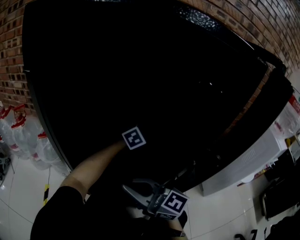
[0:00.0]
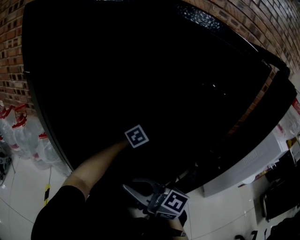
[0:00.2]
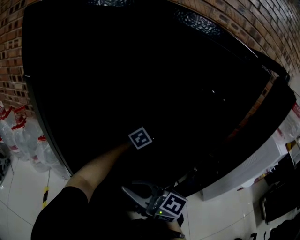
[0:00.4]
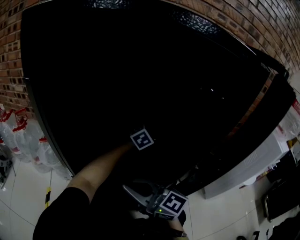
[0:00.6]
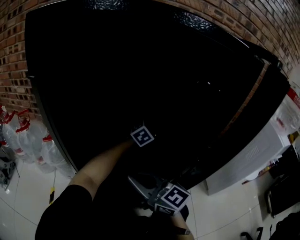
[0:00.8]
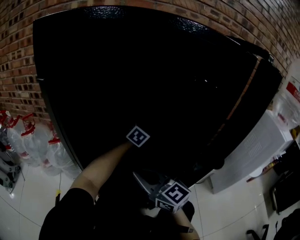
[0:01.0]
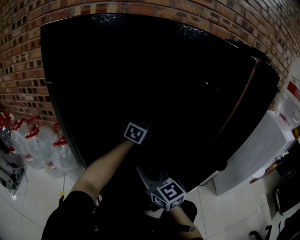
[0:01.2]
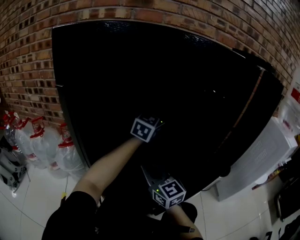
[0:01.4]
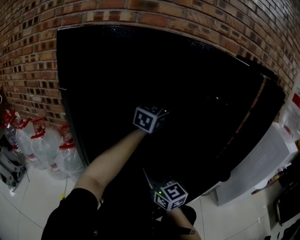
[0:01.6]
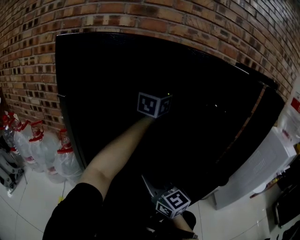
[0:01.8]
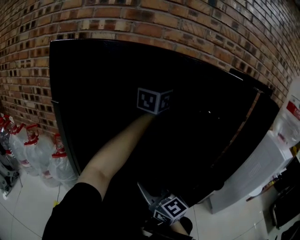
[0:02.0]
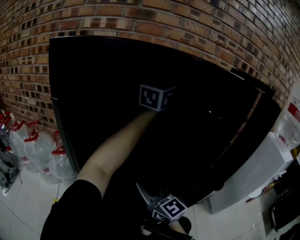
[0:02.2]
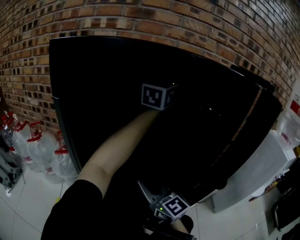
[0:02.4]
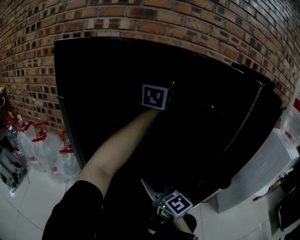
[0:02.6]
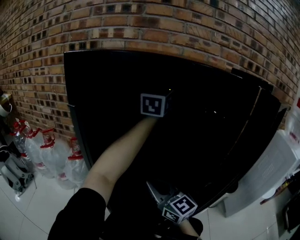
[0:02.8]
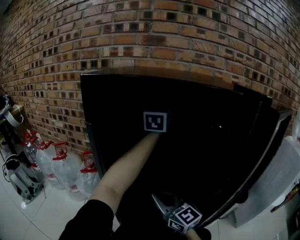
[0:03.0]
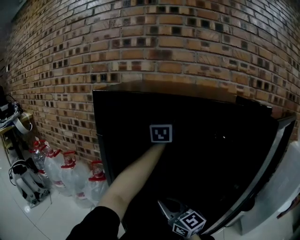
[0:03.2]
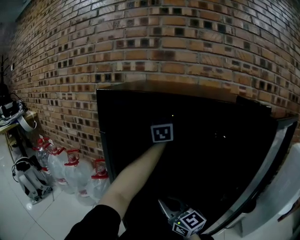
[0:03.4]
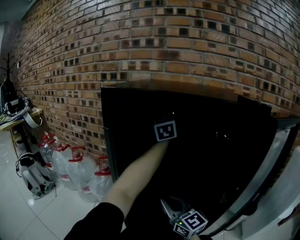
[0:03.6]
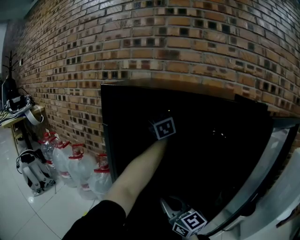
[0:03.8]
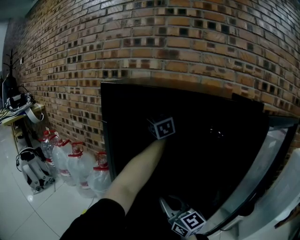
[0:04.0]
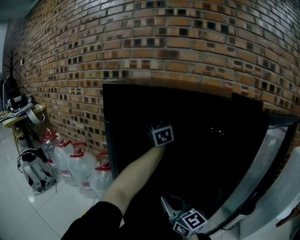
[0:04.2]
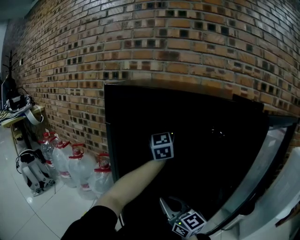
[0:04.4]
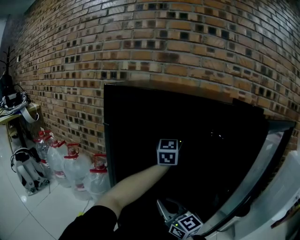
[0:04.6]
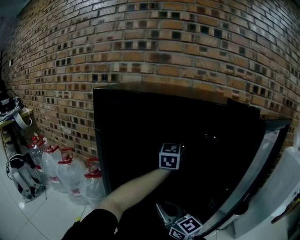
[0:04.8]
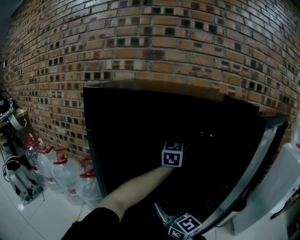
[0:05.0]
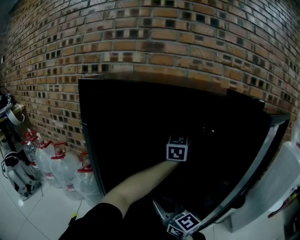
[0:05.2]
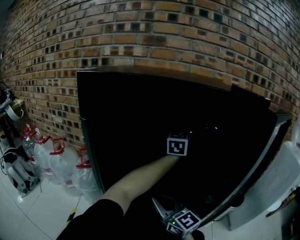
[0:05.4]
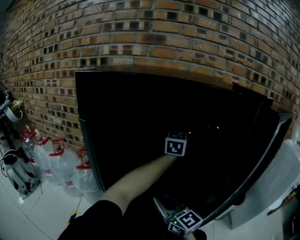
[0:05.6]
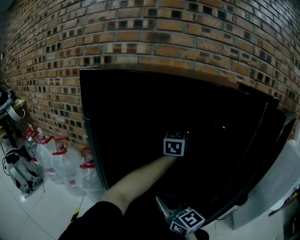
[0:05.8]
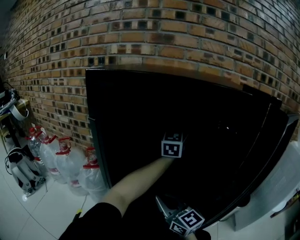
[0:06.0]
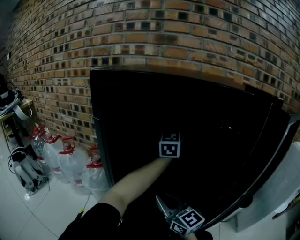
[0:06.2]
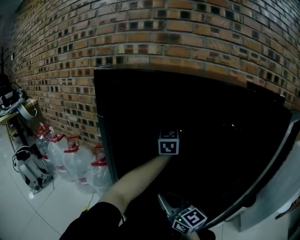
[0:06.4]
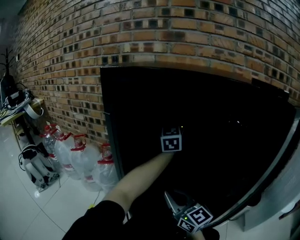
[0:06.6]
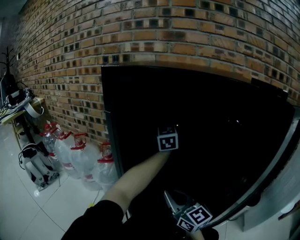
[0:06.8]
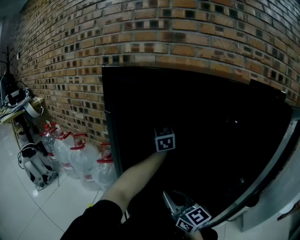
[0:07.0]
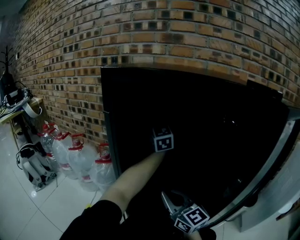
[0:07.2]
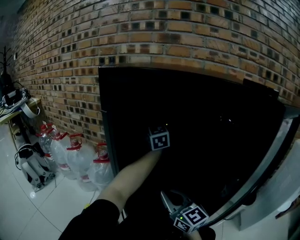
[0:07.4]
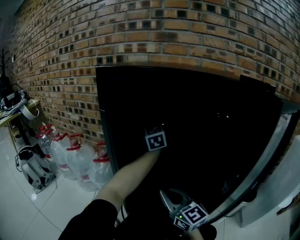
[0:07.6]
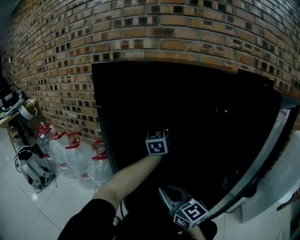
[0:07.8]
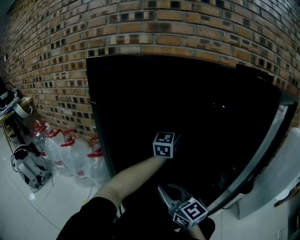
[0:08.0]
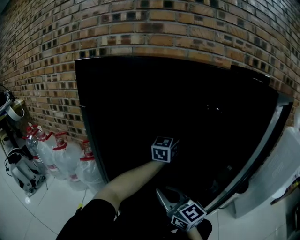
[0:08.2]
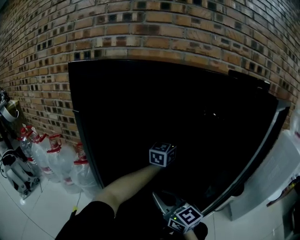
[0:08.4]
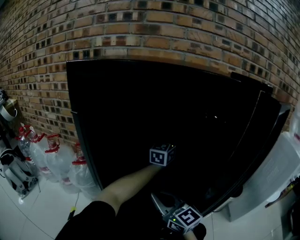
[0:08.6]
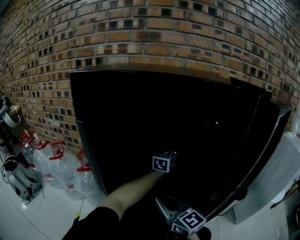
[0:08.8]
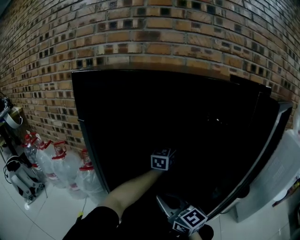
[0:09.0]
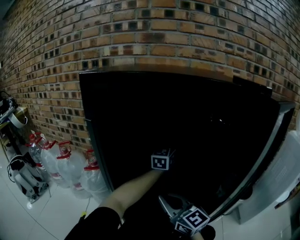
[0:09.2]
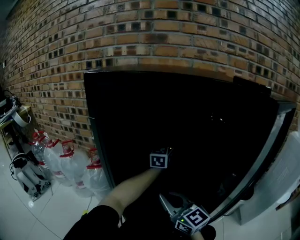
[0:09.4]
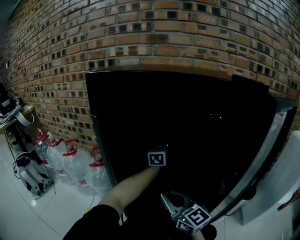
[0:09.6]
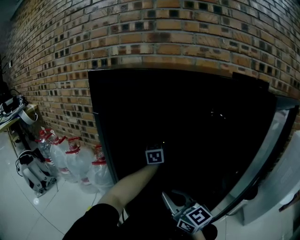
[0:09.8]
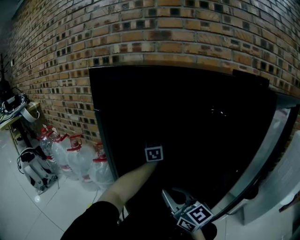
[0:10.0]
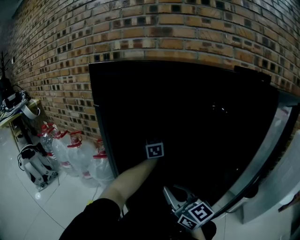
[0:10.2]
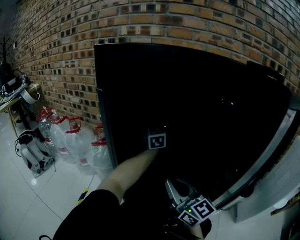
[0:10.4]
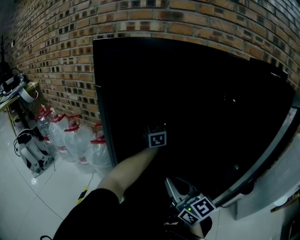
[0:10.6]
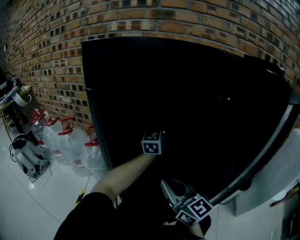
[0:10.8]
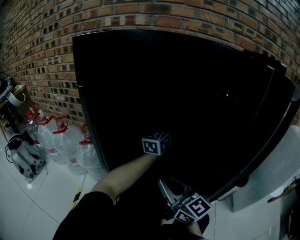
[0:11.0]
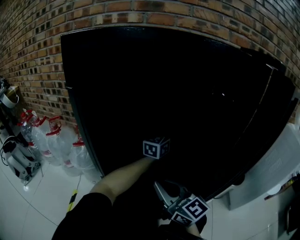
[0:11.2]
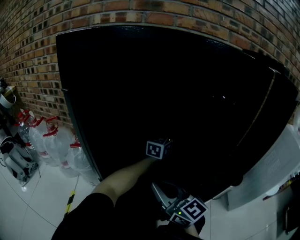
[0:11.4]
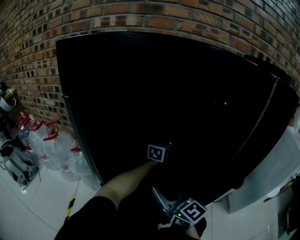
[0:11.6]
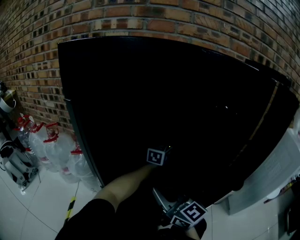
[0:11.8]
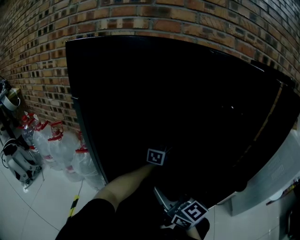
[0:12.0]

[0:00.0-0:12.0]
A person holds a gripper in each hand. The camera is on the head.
0:00.0 to 0:01.6: The left gripper heads upward, covering about 25 cm, and tips its fingers upward by roughly 40 degrees, while the right gripper is displaced forward by roughly 10 cm, and rotates about 30 degrees.
0:01.6 to 0:03.0: The left gripper moves upward and to the left, approximately 15 cm, and swivels approximately 30 degrees. The right gripper moves approximately 5 cm.
0:03.0 to 0:04.4: The left gripper moves to the left, about 10 cm, and swivels roughly 20 degrees.
0:04.4 to 0:06.0: The left gripper goes approximately 15 cm to the right and downward, and swivels roughly 20 degrees.
0:06.0 to 0:07.6: The left gripper shifts about 15 cm to the left and forward, and changes its angle by some 30 degrees.
0:07.6 to 0:09.0: The left gripper travels to the right and downward by approximately 20 cm, and swivels some 40 degrees.
0:09.0 to 0:10.4: The left gripper moves to the left and forward, roughly 15 cm, and changes its angle by about 30 degrees.
0:10.4 to 0:12.0: The left gripper shifts about 15 cm to the right and downward, and swivels approximately 40 degrees.

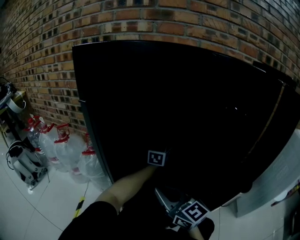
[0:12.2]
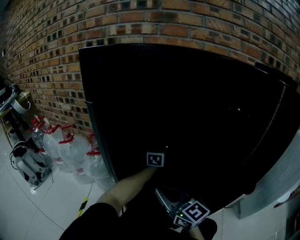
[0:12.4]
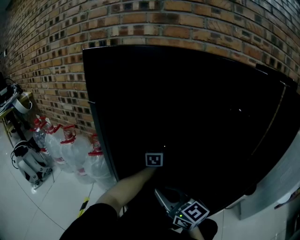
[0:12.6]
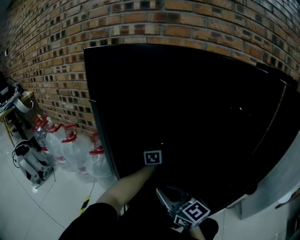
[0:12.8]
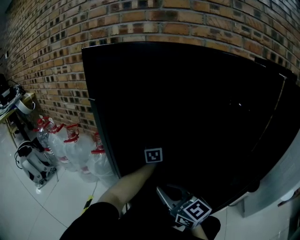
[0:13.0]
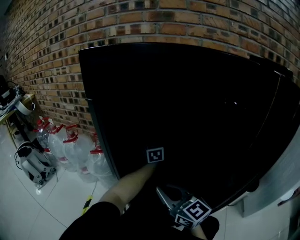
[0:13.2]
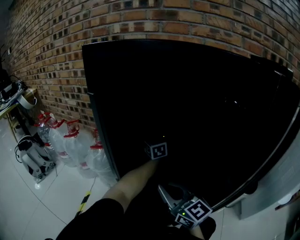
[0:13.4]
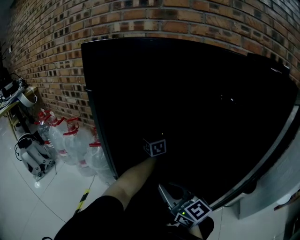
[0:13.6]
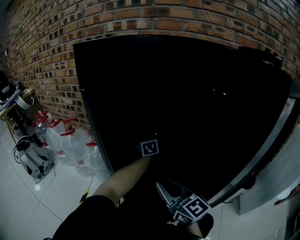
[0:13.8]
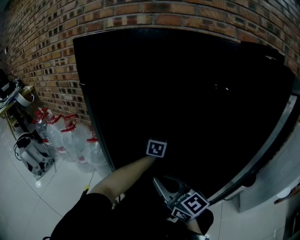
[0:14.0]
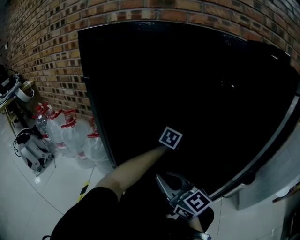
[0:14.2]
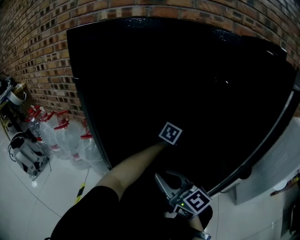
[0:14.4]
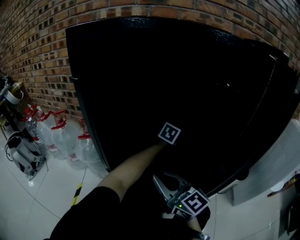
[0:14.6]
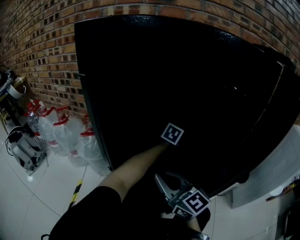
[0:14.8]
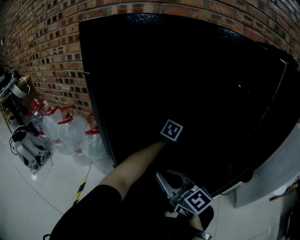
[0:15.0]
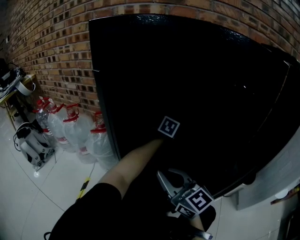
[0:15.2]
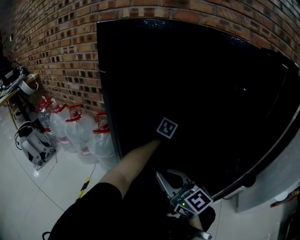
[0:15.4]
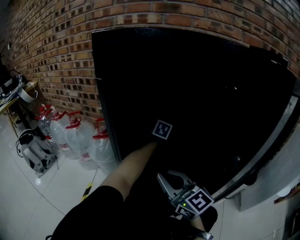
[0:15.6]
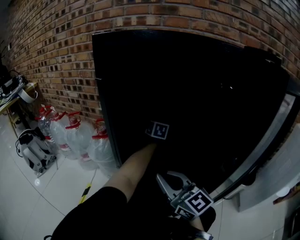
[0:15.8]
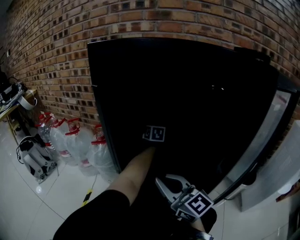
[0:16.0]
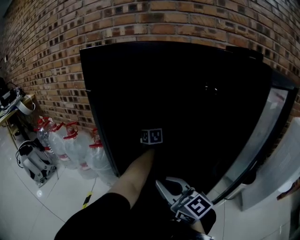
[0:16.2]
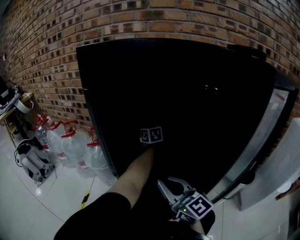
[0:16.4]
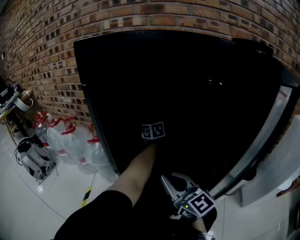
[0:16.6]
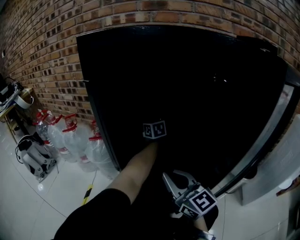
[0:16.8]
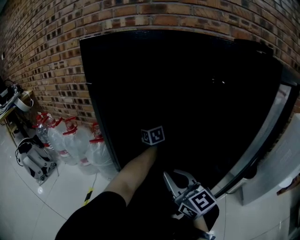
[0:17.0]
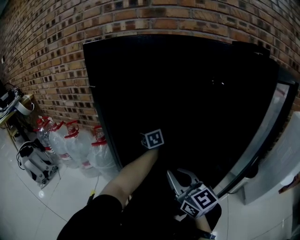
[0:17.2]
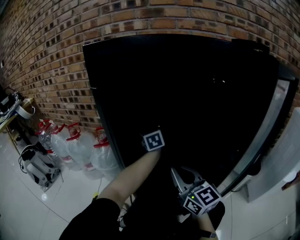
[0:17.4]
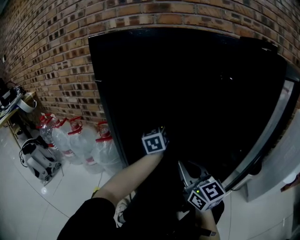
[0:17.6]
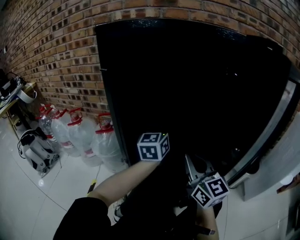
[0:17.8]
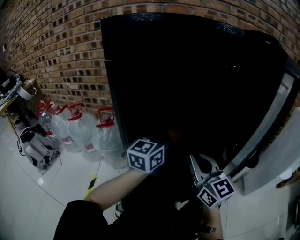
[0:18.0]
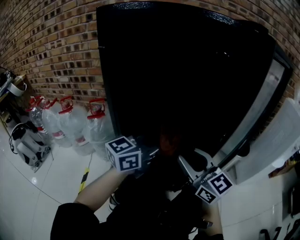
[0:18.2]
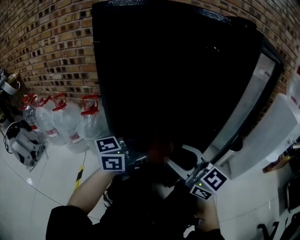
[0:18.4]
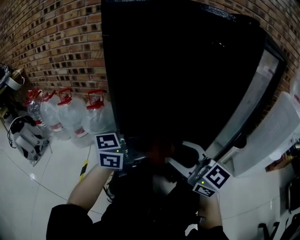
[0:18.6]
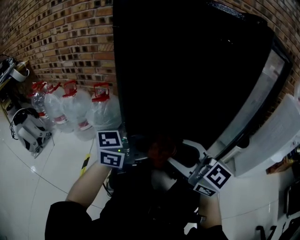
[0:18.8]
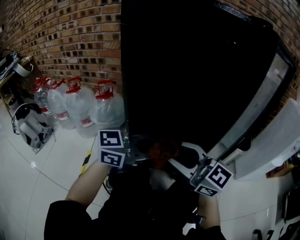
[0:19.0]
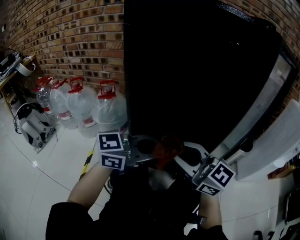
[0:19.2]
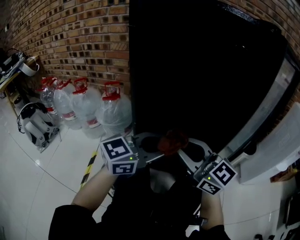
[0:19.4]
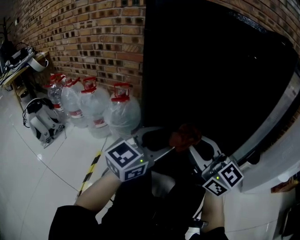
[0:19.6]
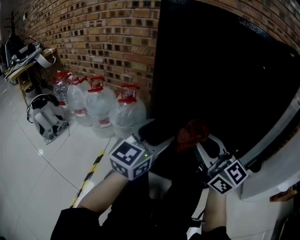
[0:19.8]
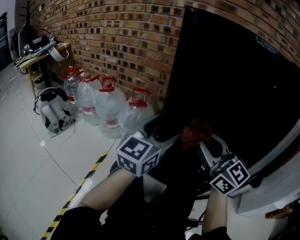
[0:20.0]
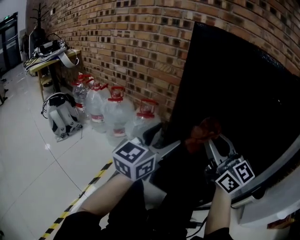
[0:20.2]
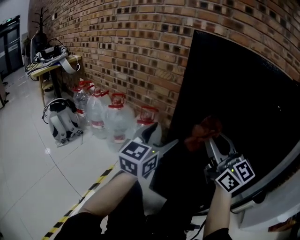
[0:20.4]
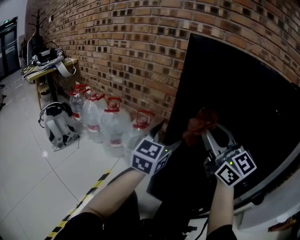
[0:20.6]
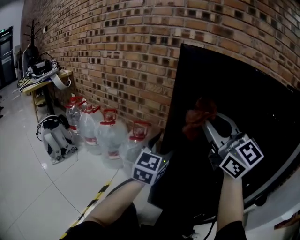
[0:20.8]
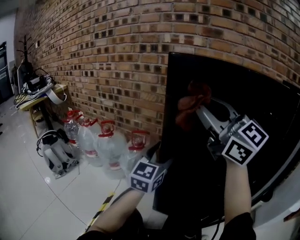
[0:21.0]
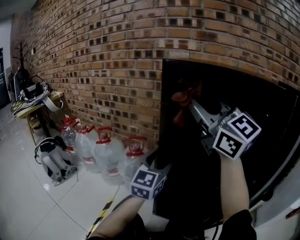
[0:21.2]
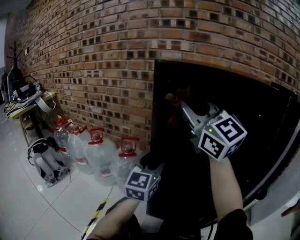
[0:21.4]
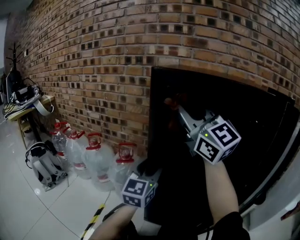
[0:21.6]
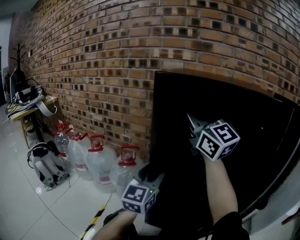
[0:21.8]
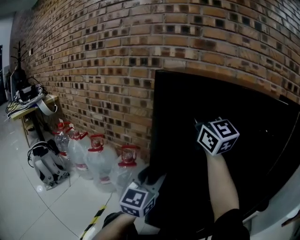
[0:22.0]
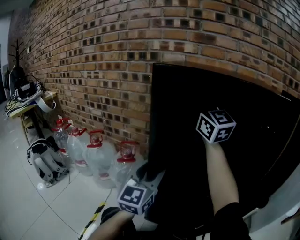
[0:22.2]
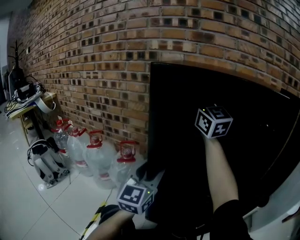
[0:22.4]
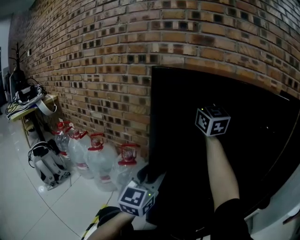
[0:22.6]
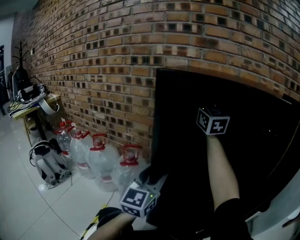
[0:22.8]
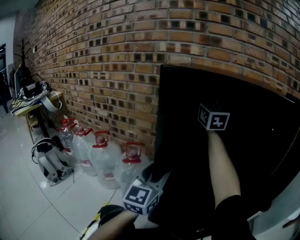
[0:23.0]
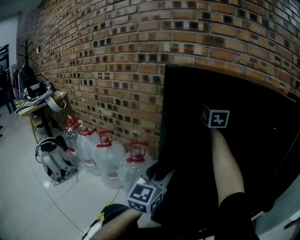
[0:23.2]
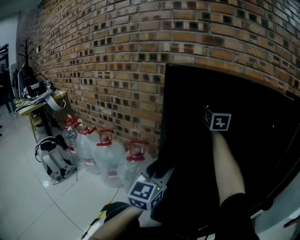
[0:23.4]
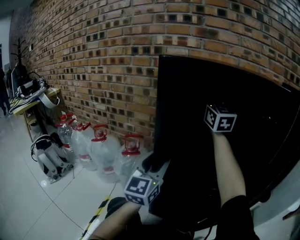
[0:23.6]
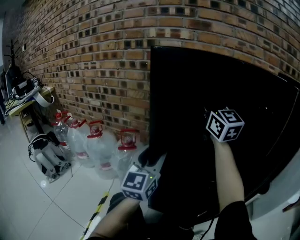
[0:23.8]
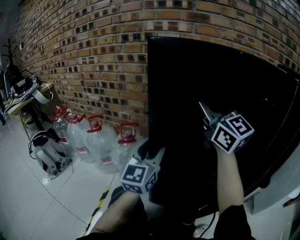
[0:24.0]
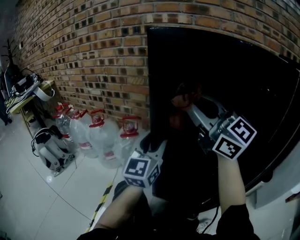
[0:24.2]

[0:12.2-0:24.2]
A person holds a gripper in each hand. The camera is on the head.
0:12.2 to 0:13.8: The left gripper shifts roughly 10 cm to the left and forward, and rotates approximately 30 degrees.
0:13.8 to 0:15.2: The left gripper shifts some 10 cm to the right, and swivels roughly 40 degrees.
0:15.2 to 0:16.6: The left gripper is displaced to the left and forward by approximately 15 cm, and swivels roughly 40 degrees.
0:16.6 to 0:18.2: The left gripper shifts by roughly 35 cm, and turns by some 80 degrees. Meanwhile the right gripper shifts by about 5 cm, and opens up.
0:18.2 to 0:19.8: The left gripper changes place by some 15 cm, rotates some 30 degrees, and opens up. The right gripper shifts by some 10 cm.
0:19.8 to 0:21.2: The right gripper is displaced upward and forward by some 30 cm, while the left gripper is displaced forward by about 15 cm.
0:21.2 to 0:22.6: The right gripper goes roughly 20 cm forward and to the right.
0:22.6 to 0:24.2: The right gripper shifts roughly 20 cm backward, and changes its angle by about 20 degrees.
